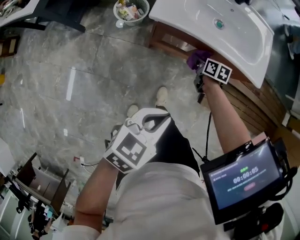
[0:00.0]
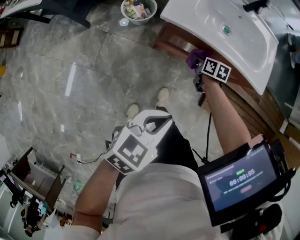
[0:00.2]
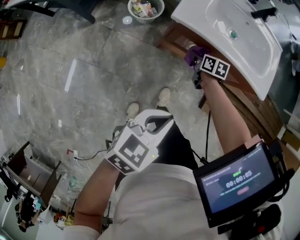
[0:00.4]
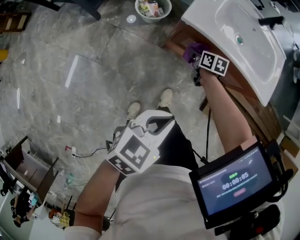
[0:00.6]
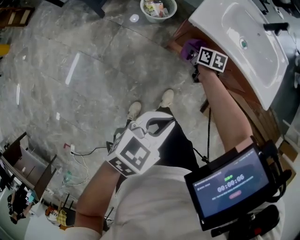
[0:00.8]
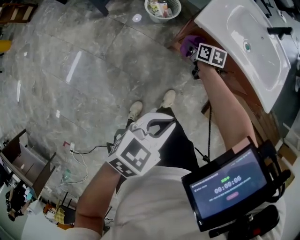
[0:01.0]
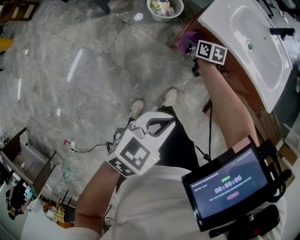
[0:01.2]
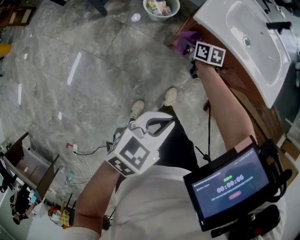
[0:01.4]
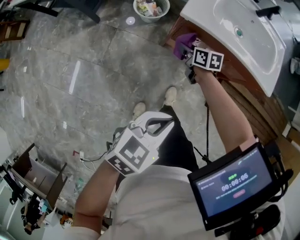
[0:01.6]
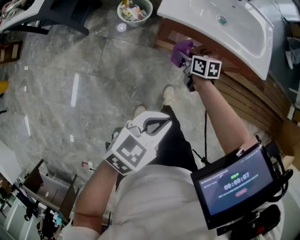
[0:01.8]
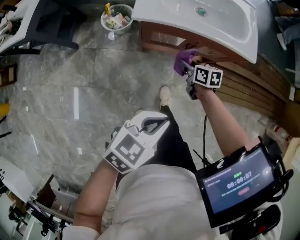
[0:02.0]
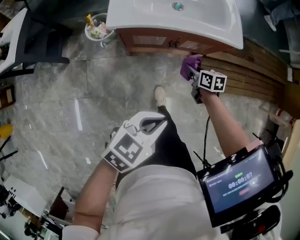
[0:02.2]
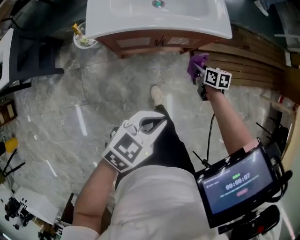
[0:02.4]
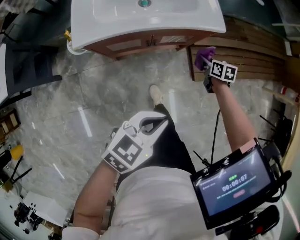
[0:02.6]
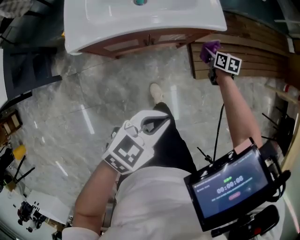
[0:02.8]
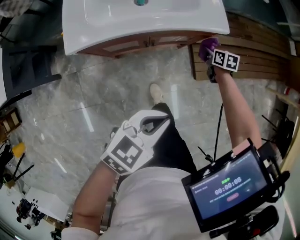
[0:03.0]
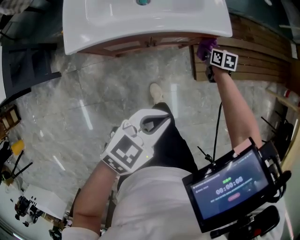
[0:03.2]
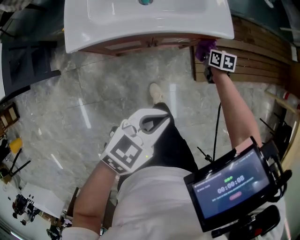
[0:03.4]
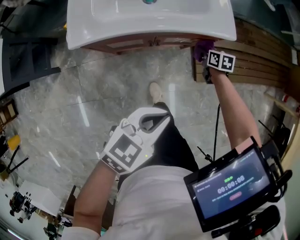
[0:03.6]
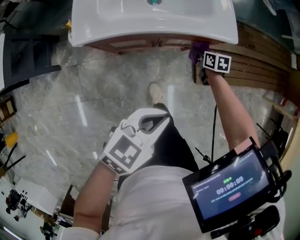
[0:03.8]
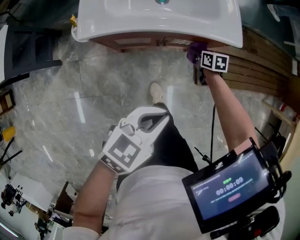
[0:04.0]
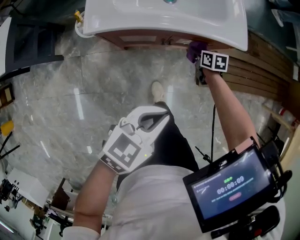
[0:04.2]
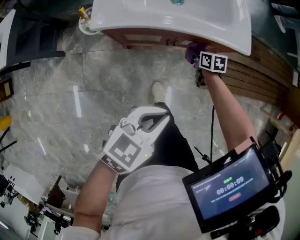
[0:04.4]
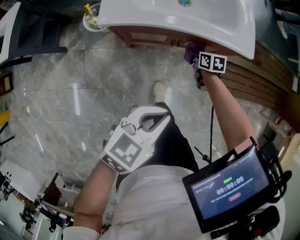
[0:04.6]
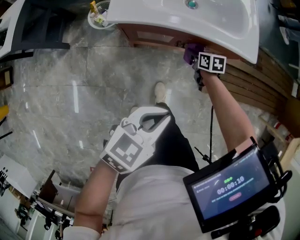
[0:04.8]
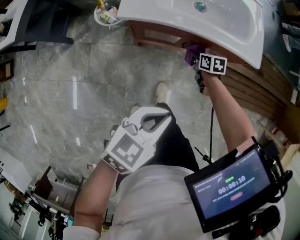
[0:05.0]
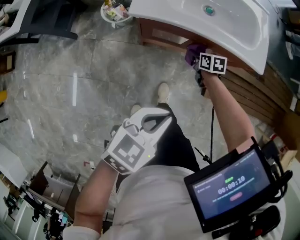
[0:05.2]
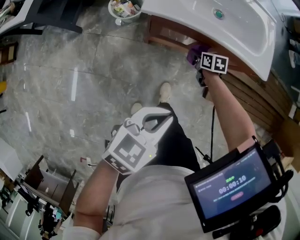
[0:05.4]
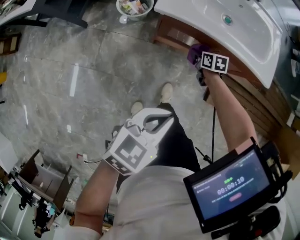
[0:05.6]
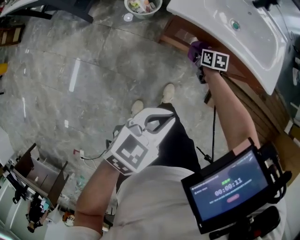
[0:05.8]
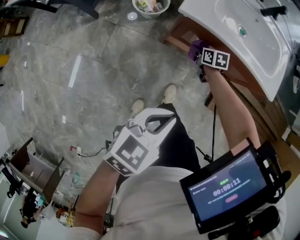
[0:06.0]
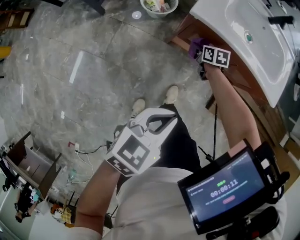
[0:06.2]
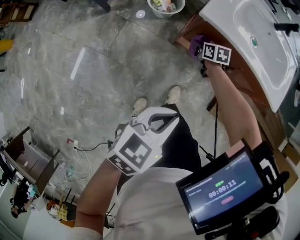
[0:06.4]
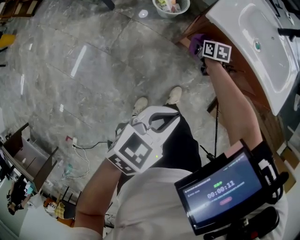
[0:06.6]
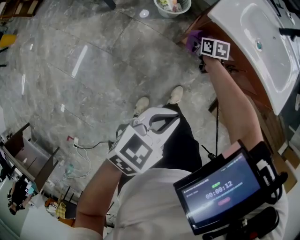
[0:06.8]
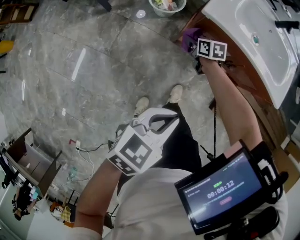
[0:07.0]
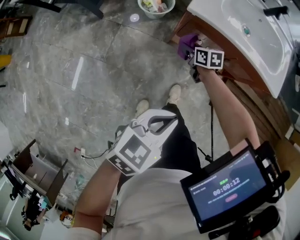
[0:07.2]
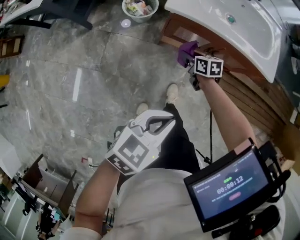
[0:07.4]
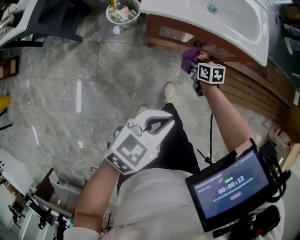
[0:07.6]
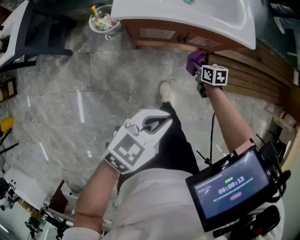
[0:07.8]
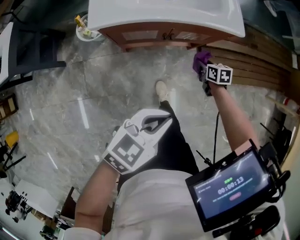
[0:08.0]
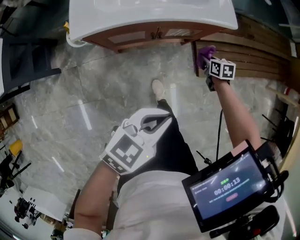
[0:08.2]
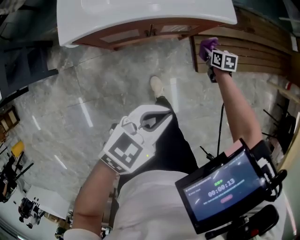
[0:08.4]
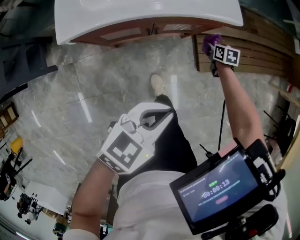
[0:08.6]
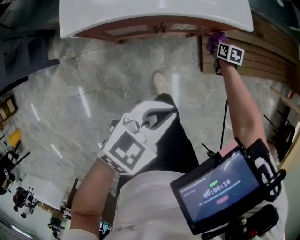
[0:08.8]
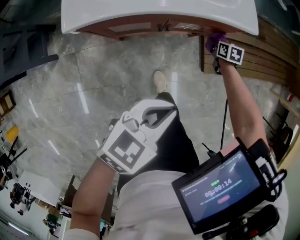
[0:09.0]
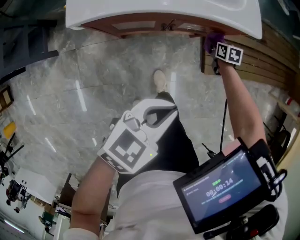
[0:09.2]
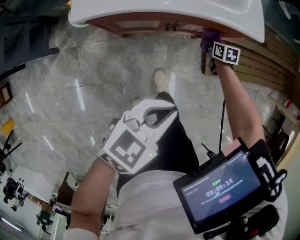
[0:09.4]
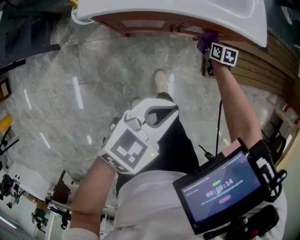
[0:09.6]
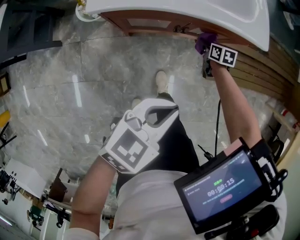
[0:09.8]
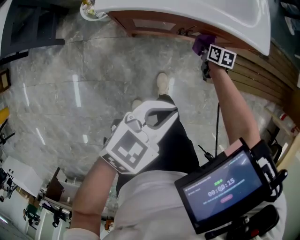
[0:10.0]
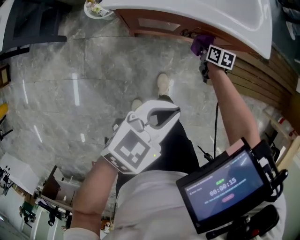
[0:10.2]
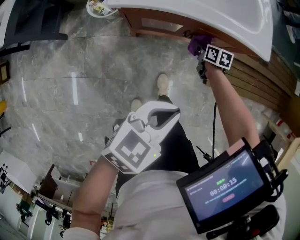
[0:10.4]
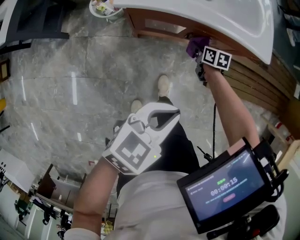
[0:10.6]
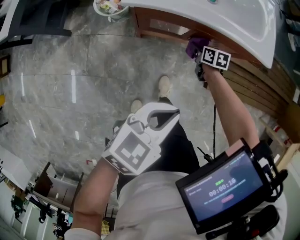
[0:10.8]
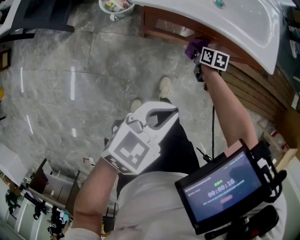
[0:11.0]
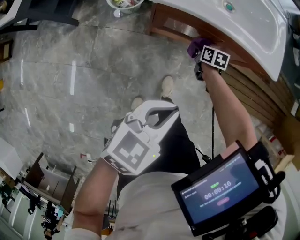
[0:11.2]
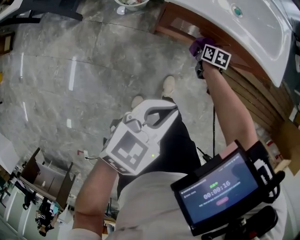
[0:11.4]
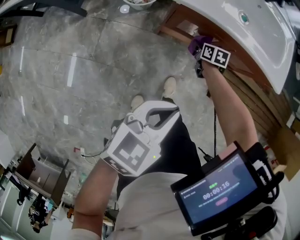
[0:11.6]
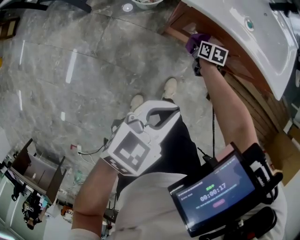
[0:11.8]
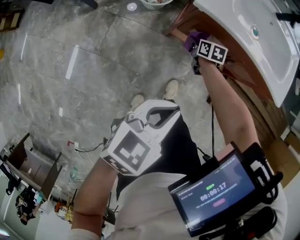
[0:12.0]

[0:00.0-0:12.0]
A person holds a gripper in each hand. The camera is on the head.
0.0 to 1.6 s: The left gripper shifts approximately 10 cm to the left and backward. Meanwhile the right gripper moves to the left, about 20 cm.
1.6 to 3.0 s: The left gripper changes place by roughly 25 cm, and rotates some 30 degrees. The right gripper changes place by approximately 50 cm, and turns by some 40 degrees.
3.0 to 4.4 s: The right gripper goes about 15 cm to the left, while the left gripper goes some 5 cm to the left.
4.4 to 6.0 s: The left gripper is displaced to the left and backward by roughly 15 cm, and swivels roughly 20 degrees, while the right gripper goes approximately 25 cm to the left.
6.0 to 7.6 s: The right gripper goes approximately 10 cm backward, and moves some 15 cm to the left and comes back.
7.6 to 9.0 s: The left gripper ends up roughly 20 cm from where it was. Meanwhile the right gripper changes place by approximately 35 cm, and changes its angle by about 30 degrees.
9.0 to 10.4 s: The right gripper goes about 20 cm to the left, while the left gripper is displaced to the left by some 5 cm.
10.4 to 12.0 s: The left gripper travels to the left by some 15 cm, and rotates approximately 20 degrees. Meanwhile the right gripper shifts roughly 25 cm to the left.

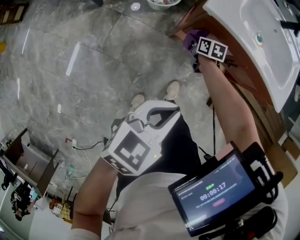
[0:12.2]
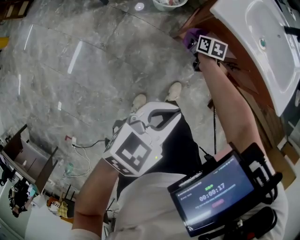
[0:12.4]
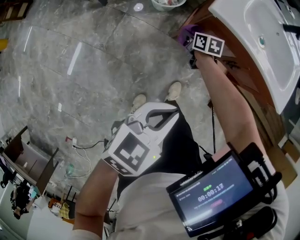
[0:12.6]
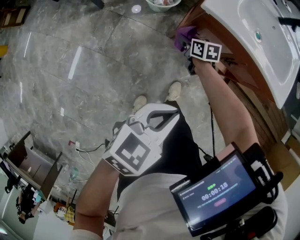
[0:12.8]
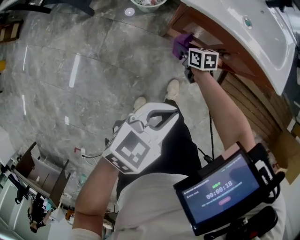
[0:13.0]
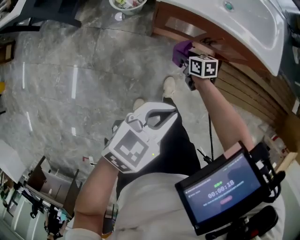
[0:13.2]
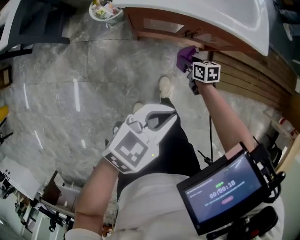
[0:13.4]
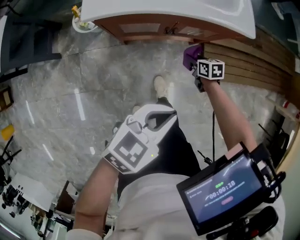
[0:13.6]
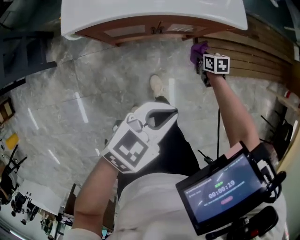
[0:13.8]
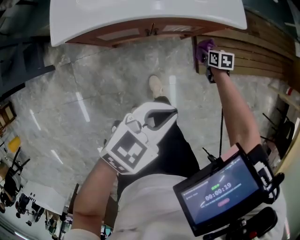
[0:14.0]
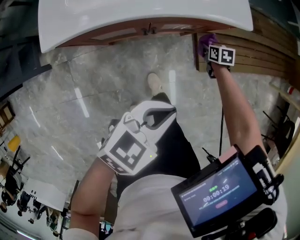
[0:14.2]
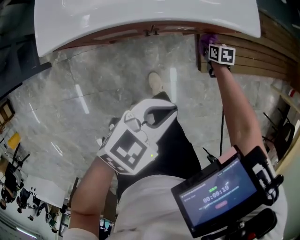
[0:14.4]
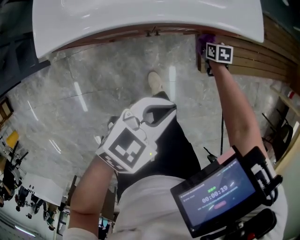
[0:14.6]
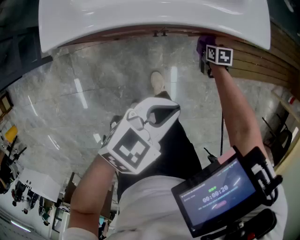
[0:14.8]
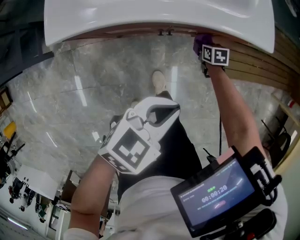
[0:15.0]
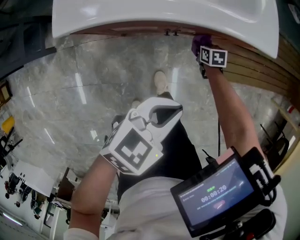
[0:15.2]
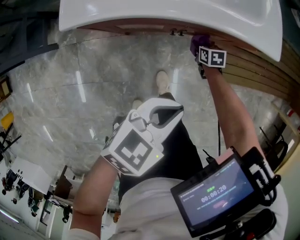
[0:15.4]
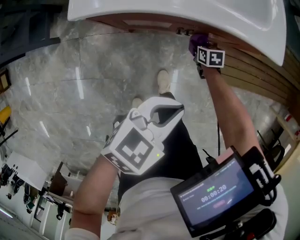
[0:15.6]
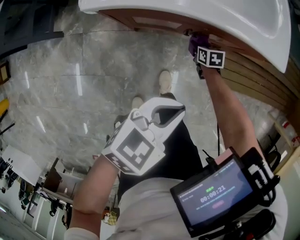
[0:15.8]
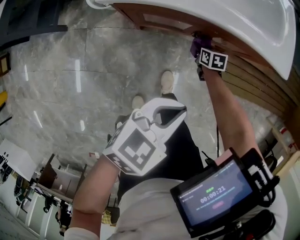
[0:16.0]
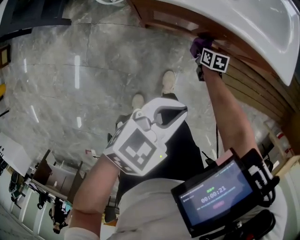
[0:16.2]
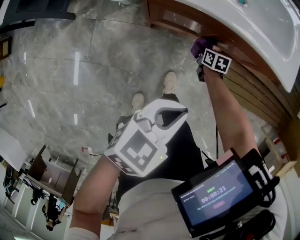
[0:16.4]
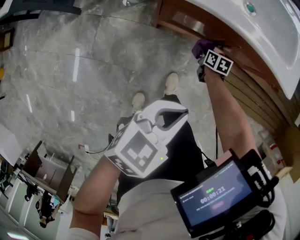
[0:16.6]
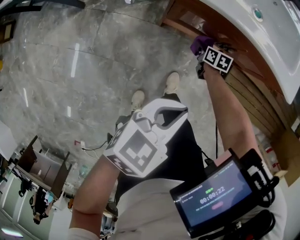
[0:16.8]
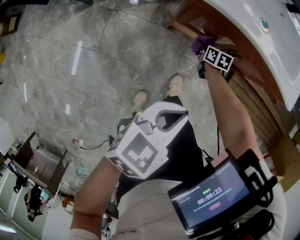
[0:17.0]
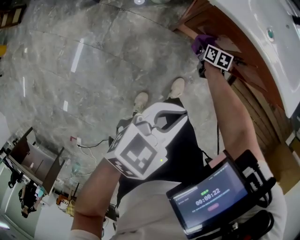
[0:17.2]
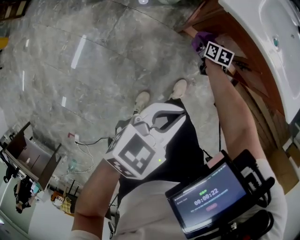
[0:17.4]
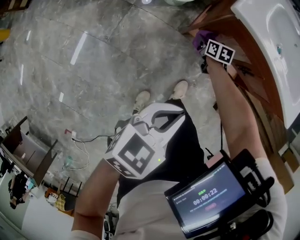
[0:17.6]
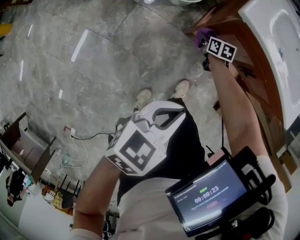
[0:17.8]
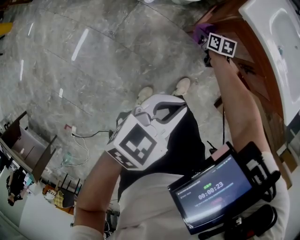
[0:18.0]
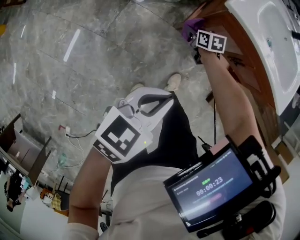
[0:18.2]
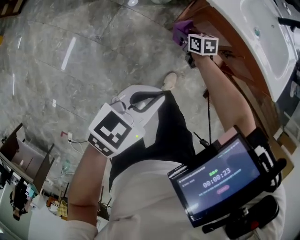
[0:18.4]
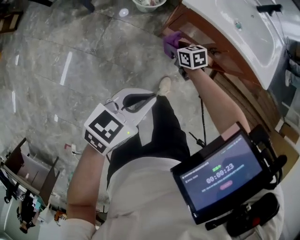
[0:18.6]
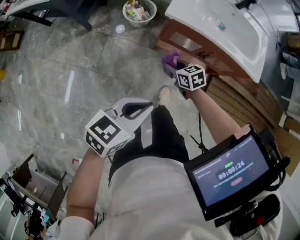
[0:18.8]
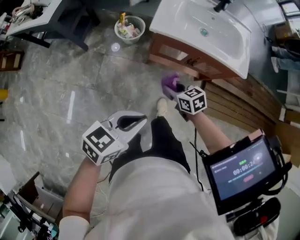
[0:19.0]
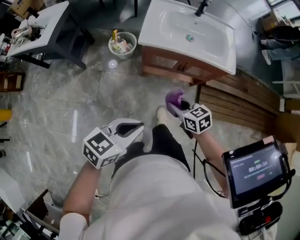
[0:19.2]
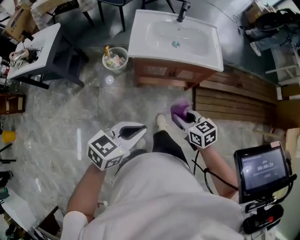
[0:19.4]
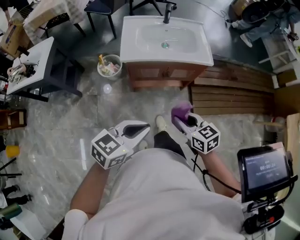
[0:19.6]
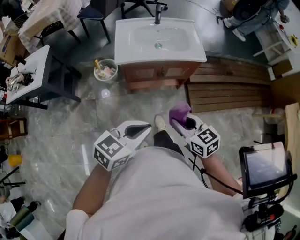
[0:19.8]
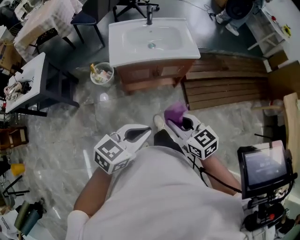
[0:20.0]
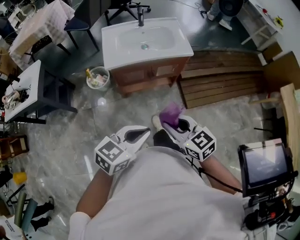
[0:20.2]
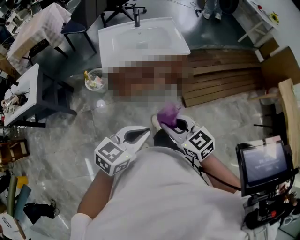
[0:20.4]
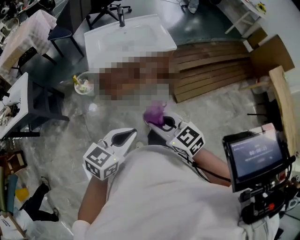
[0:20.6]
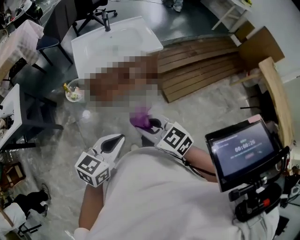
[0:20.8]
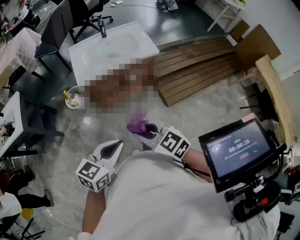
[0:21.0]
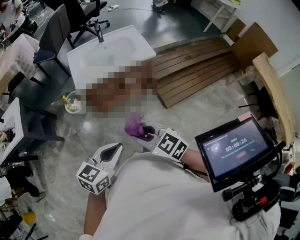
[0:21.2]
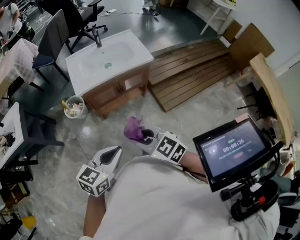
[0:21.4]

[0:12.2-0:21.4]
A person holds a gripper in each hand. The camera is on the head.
12.2 to 13.8 s: The right gripper ends up roughly 40 cm from where it was, and turns by roughly 20 degrees; the left gripper shifts by about 20 cm, and changes its angle by approximately 40 degrees.
13.8 to 15.2 s: The left gripper is displaced forward and downward by about 10 cm; the right gripper moves downward, to the left and forward, about 15 cm.
15.2 to 16.8 s: The right gripper heads to the left and backward, covering some 20 cm, while the left gripper shifts roughly 15 cm backward and to the left, and changes its angle by approximately 20 degrees.
16.8 to 18.4 s: The left gripper heads to the left, upward and backward, covering about 20 cm. Meanwhile the right gripper travels to the left and upward by roughly 25 cm, and rotates approximately 30 degrees.
18.4 to 19.8 s: The left gripper goes some 25 cm upward, and changes its angle by about 30 degrees, while the right gripper shifts roughly 50 cm upward, and changes its angle by about 30 degrees.
19.8 to 21.4 s: The left gripper moves backward, about 5 cm; the right gripper moves backward and to the left, some 10 cm.

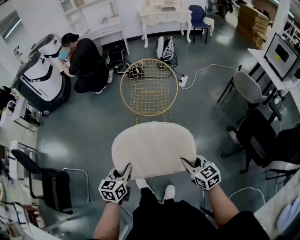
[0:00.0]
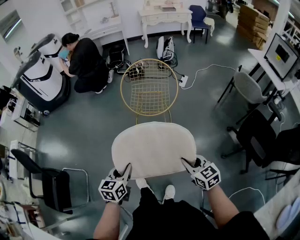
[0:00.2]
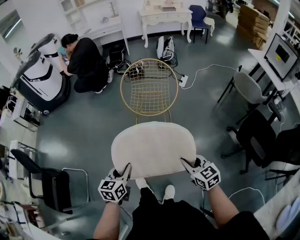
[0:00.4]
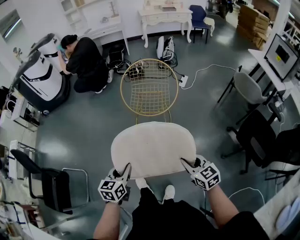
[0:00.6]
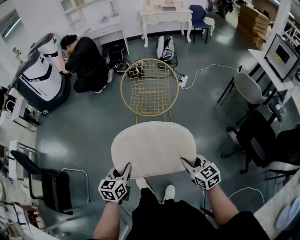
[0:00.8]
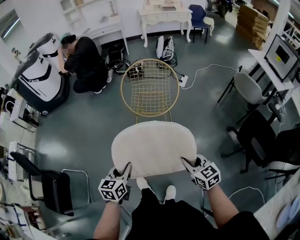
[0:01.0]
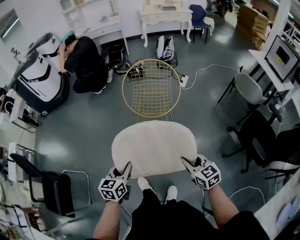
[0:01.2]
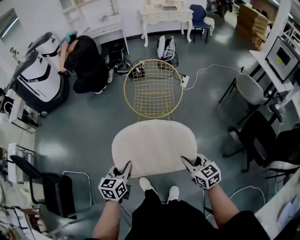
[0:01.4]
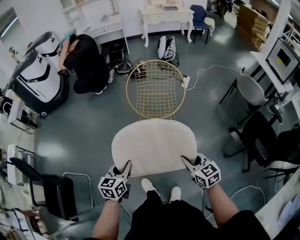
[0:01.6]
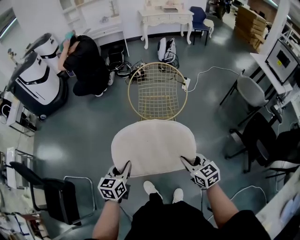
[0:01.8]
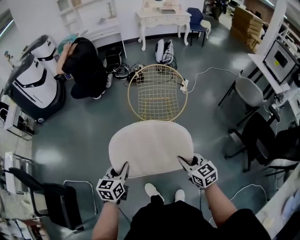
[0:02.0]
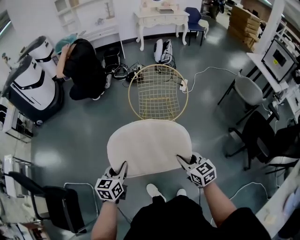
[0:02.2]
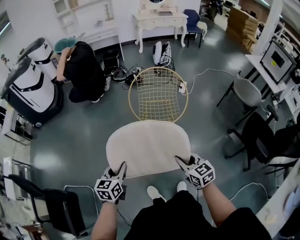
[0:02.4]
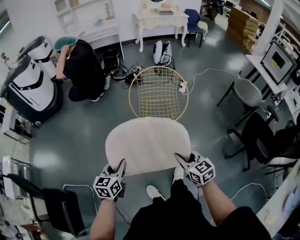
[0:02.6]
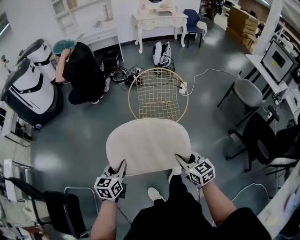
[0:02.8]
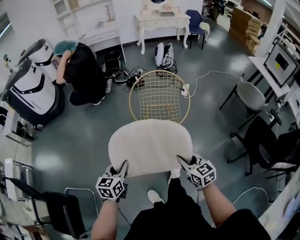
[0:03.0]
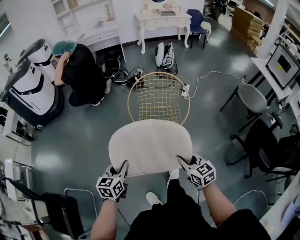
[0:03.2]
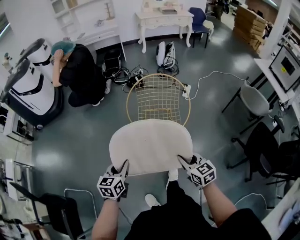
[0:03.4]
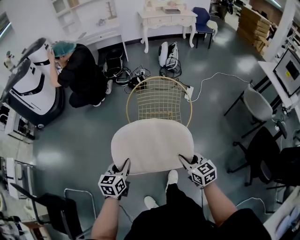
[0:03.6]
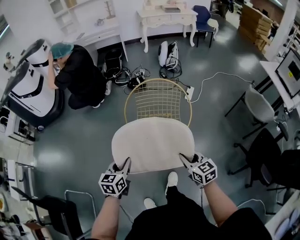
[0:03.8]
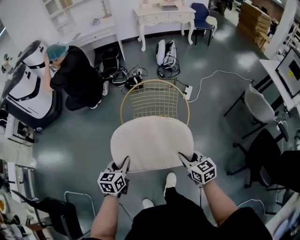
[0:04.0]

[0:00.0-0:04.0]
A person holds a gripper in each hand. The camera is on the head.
0.0 to 1.4 s: The left gripper is displaced forward and to the left by about 10 cm; the right gripper goes some 10 cm to the left and forward.
1.4 to 2.6 s: The grippers both shift to the left and forward by roughly 15 cm.
2.6 to 4.0 s: Both grippers travel together forward and to the right, roughly 25 cm.
